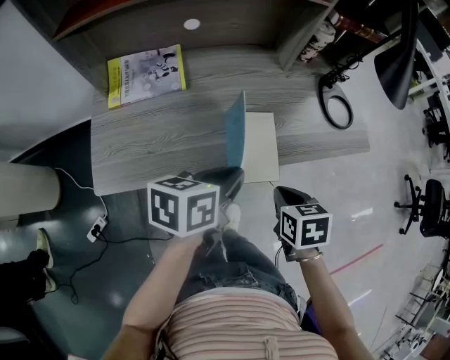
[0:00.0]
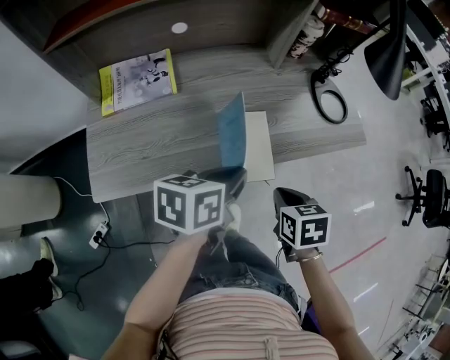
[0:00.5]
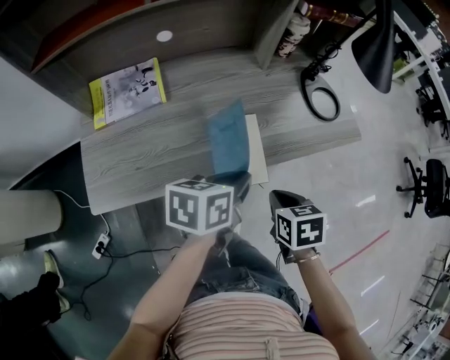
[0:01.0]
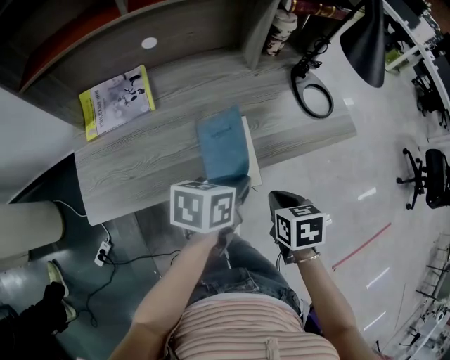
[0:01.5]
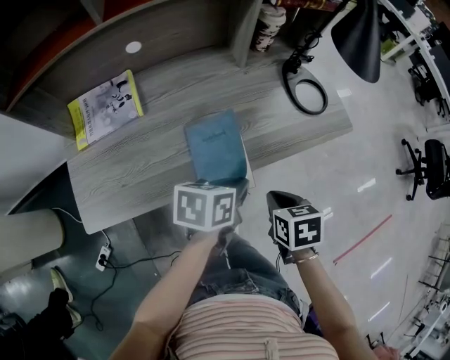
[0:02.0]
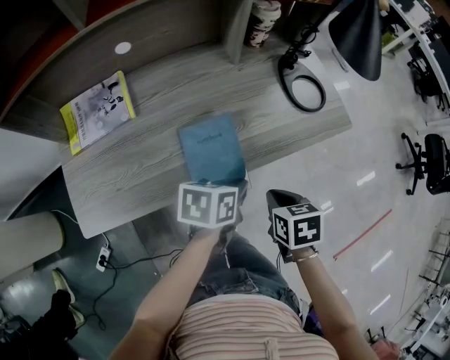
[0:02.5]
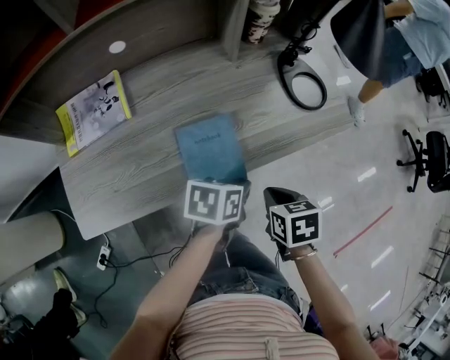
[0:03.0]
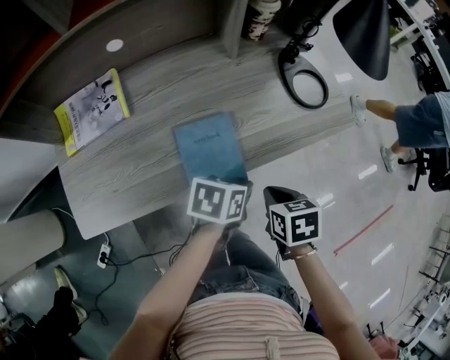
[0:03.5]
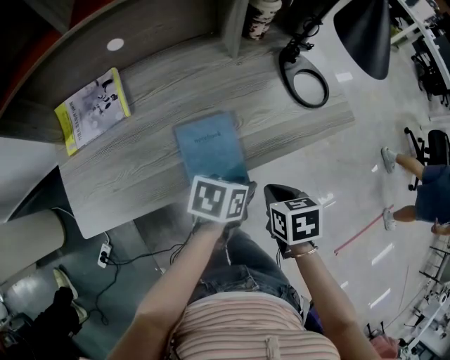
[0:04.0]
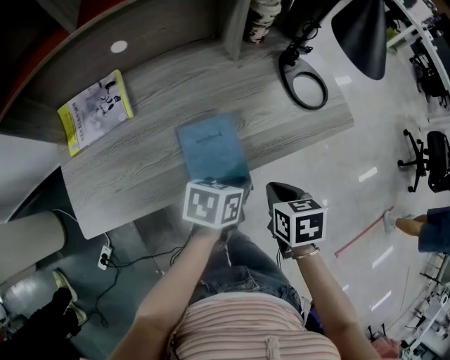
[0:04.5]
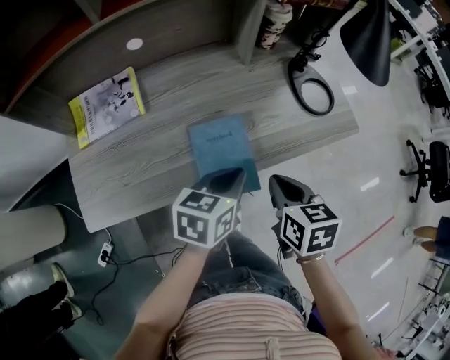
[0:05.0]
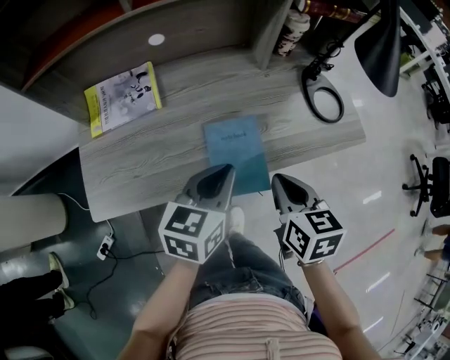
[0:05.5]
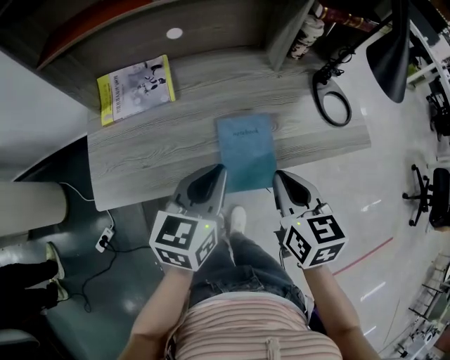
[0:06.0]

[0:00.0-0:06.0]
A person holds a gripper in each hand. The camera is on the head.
0:00.0 to 0:02.0: The right gripper shifts roughly 5 cm to the right. Meanwhile the left gripper moves to the right and downward, about 10 cm.
0:02.0 to 0:04.0: The left gripper travels downward by some 5 cm, and opens.
0:04.0 to 0:06.0: The left gripper goes about 20 cm to the left and upward, rotates about 50 degrees, and closes its fingers. The right gripper shifts approximately 15 cm upward and to the left, and angles its fingers upward, by approximately 30 degrees.

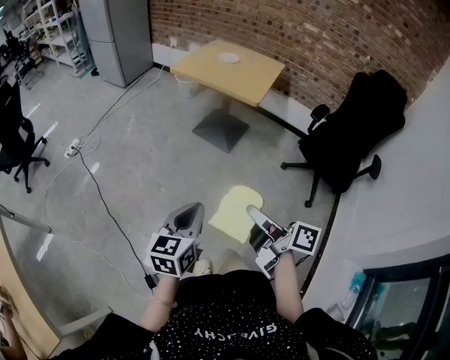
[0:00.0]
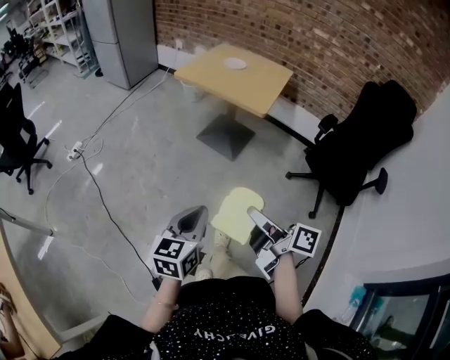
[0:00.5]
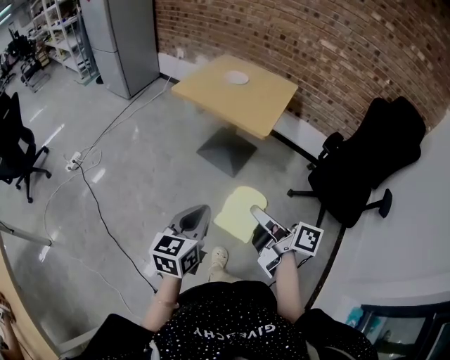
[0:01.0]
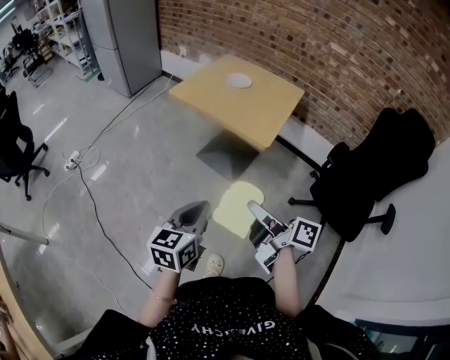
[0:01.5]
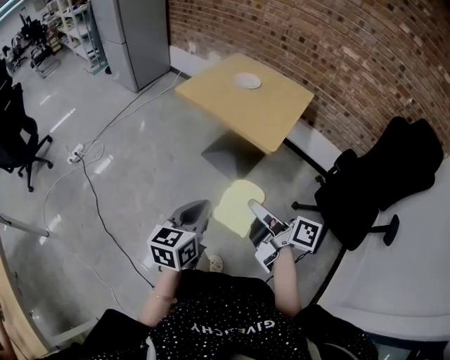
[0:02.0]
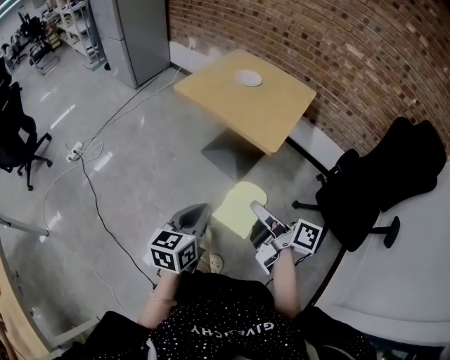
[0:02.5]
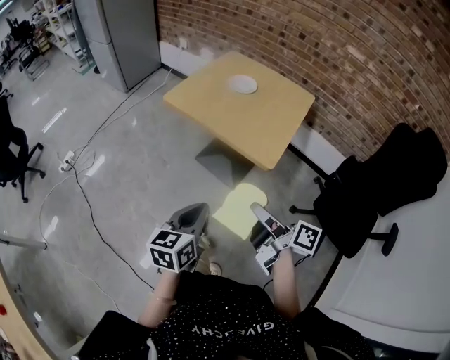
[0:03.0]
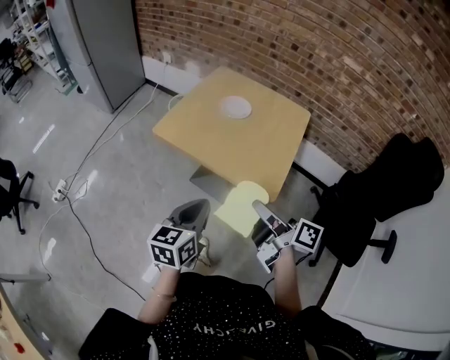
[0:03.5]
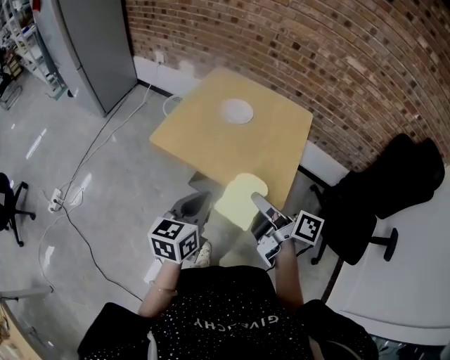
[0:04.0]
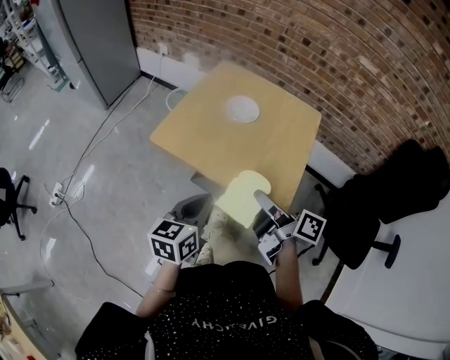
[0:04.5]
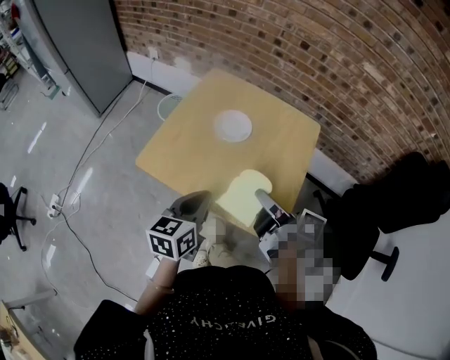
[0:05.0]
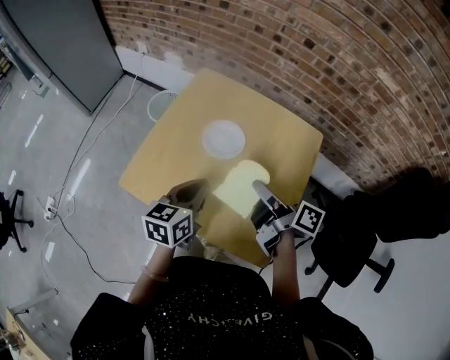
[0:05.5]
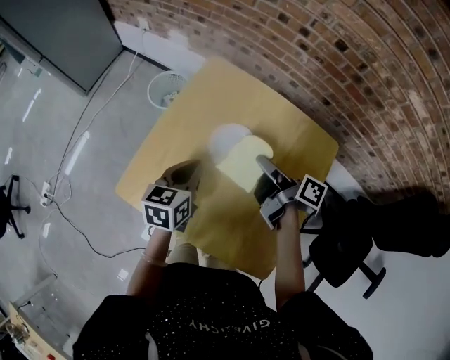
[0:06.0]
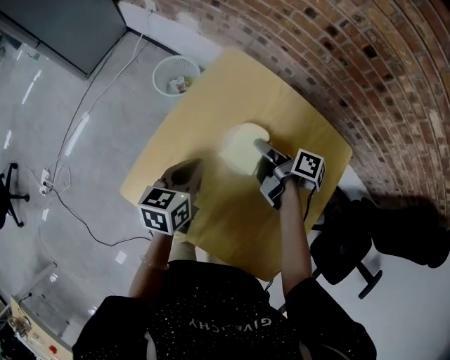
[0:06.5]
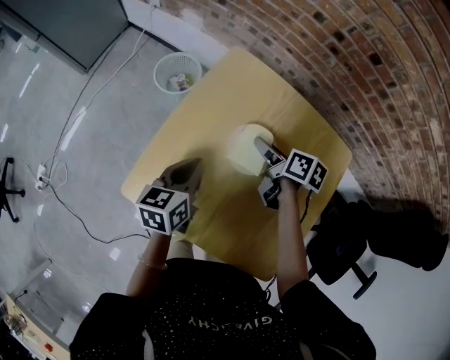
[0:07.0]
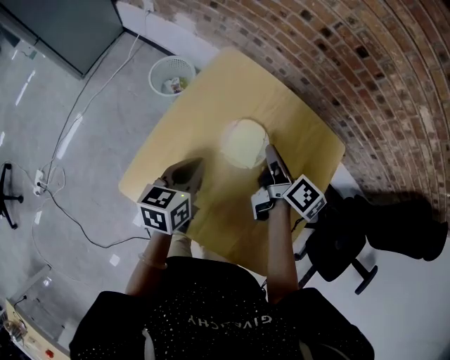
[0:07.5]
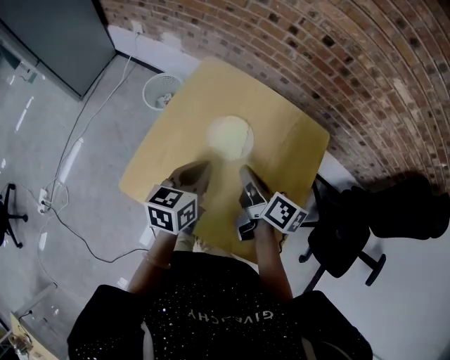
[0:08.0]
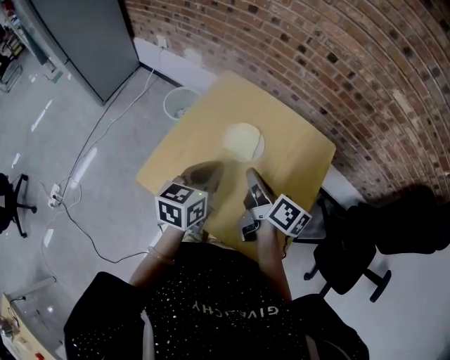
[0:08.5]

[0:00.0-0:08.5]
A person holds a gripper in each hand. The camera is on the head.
0:00.0 to 0:02.0: Both grippers move forward, approximately 30 cm.
0:02.0 to 0:04.0: The two grippers go approximately 35 cm forward.
0:04.0 to 0:06.5: The pair of grippers is taken forward, approximately 50 cm. The right gripper changes its angle by roughly 30 degrees.
0:06.5 to 0:08.5: The right gripper heads backward and upward, covering some 20 cm, changes its angle by some 30 degrees, and opens, then closes once more. Meanwhile the left gripper is displaced upward and backward by approximately 15 cm.

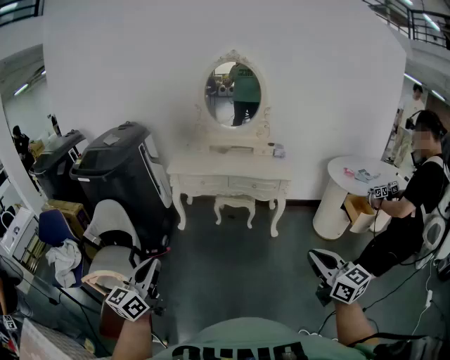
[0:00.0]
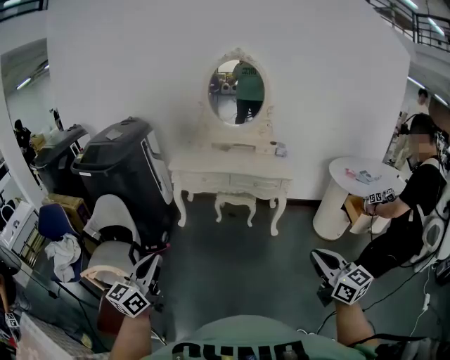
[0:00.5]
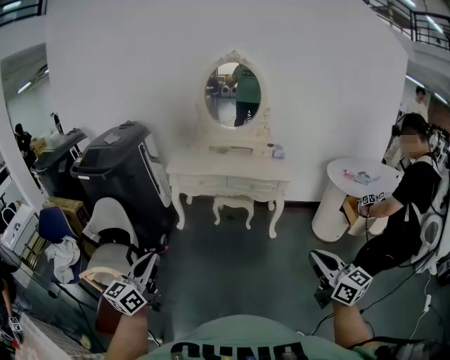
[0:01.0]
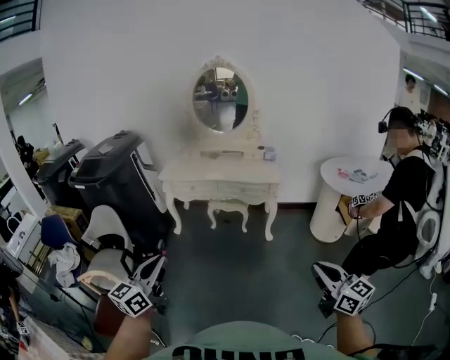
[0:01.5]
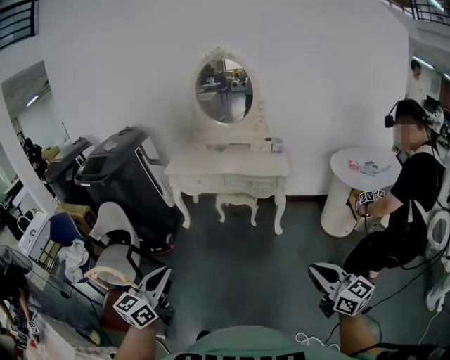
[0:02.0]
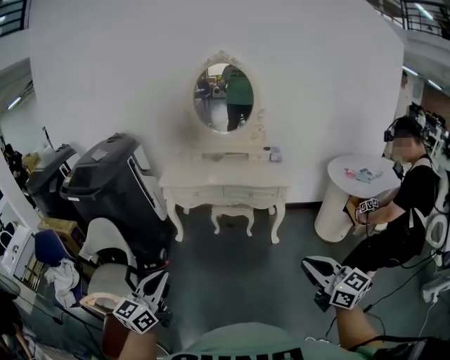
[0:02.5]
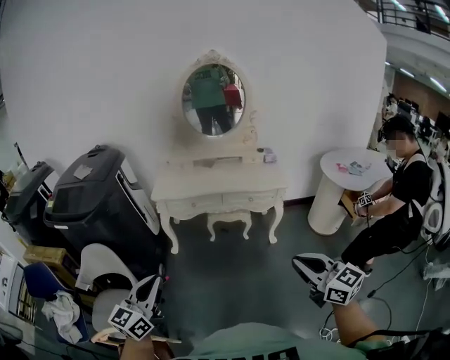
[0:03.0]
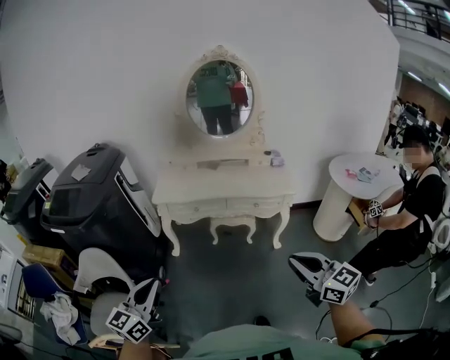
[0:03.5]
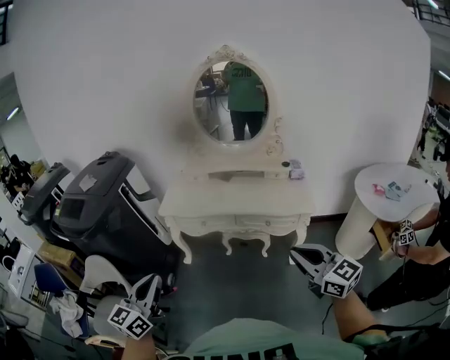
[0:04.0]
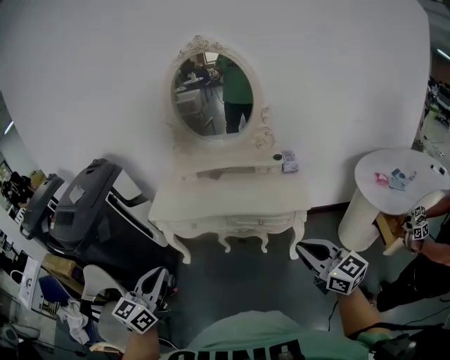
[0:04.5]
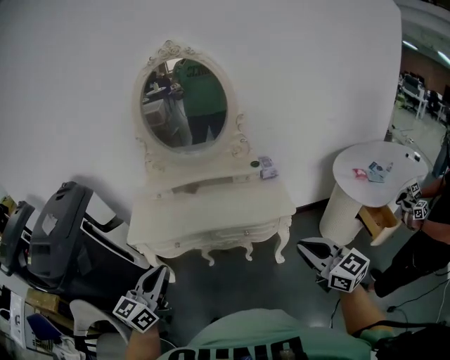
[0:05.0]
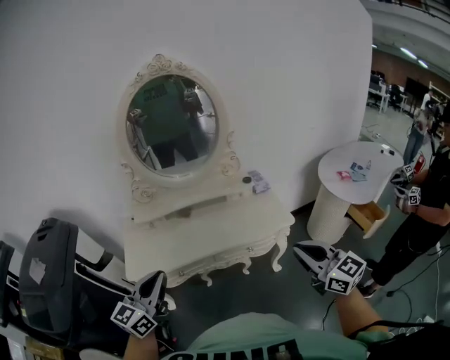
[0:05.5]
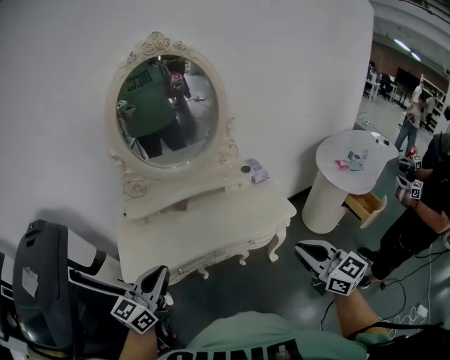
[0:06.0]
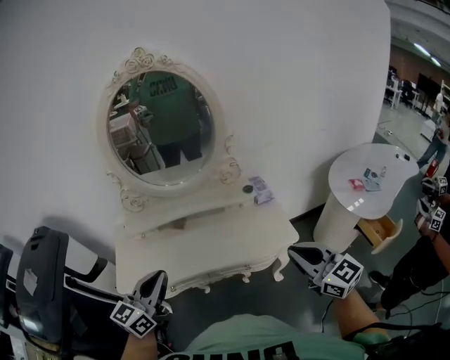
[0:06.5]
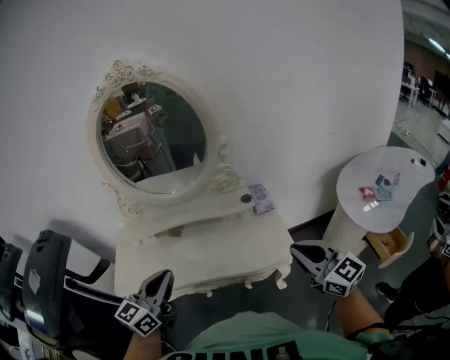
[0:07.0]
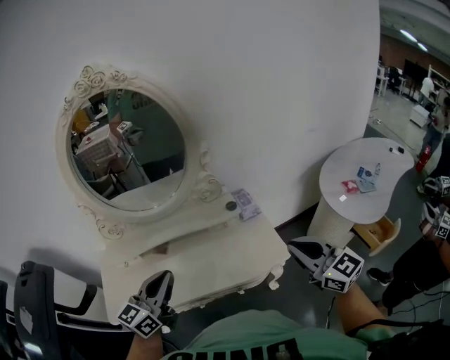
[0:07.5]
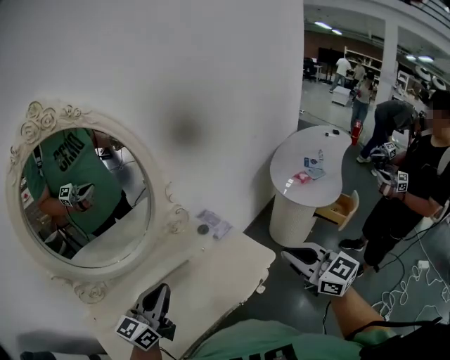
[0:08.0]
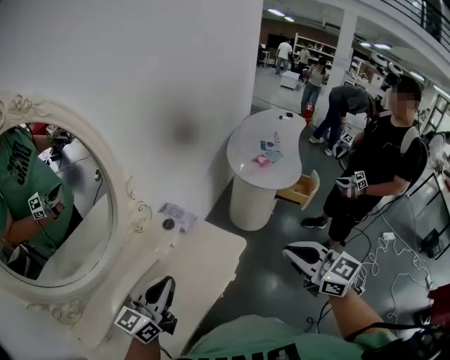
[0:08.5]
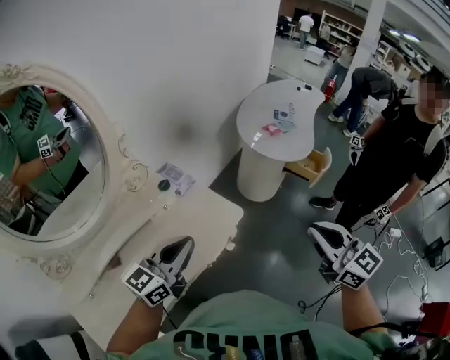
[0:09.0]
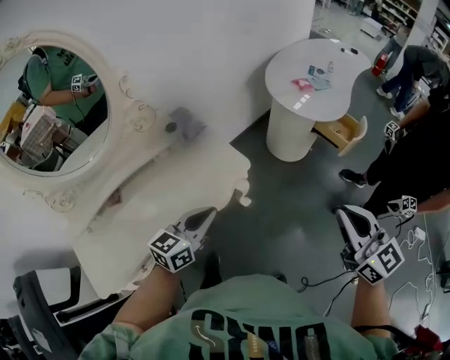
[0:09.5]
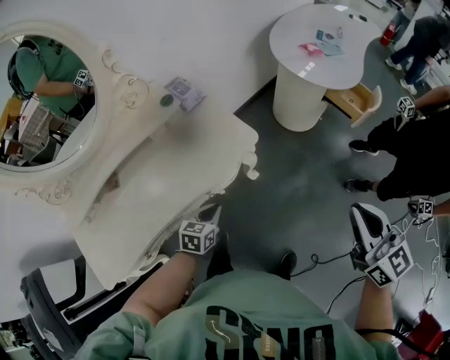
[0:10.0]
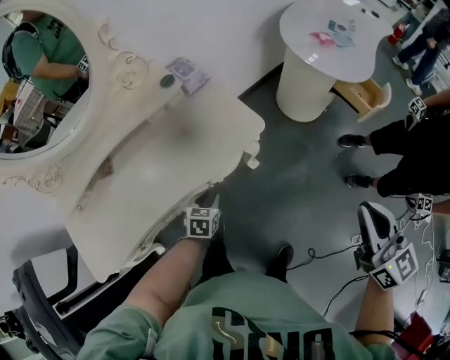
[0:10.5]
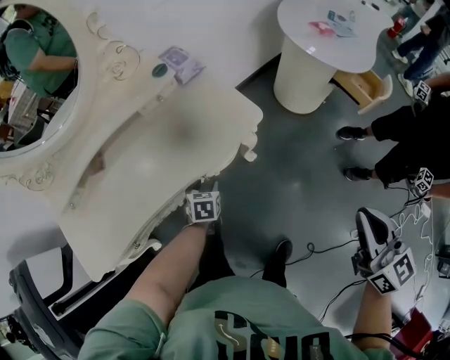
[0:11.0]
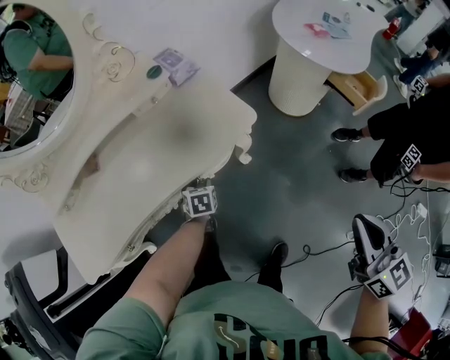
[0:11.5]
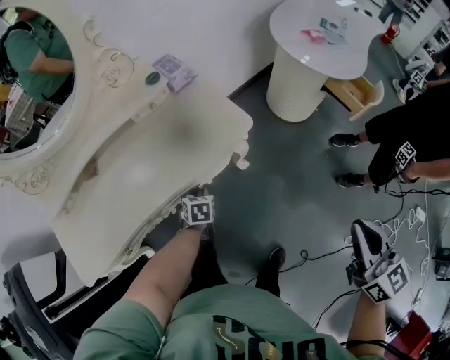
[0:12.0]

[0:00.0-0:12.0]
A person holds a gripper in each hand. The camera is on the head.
0:00.0 to 0:02.0: Both grippers travel together to the right, some 15 cm.
0:02.0 to 0:04.0: The two grippers travel together, forward, roughly 40 cm.
0:04.0 to 0:06.0: The left gripper ends up approximately 40 cm from where it was, and rotates approximately 30 degrees. Meanwhile the right gripper moves roughly 20 cm, and rotates roughly 30 degrees.
0:06.0 to 0:08.0: The right gripper ends up some 25 cm from where it was. The left gripper moves roughly 35 cm, and changes its angle by some 20 degrees.
0:08.0 to 0:10.0: The right gripper travels to the right and downward by some 30 cm, while the left gripper goes about 40 cm downward and to the right, and angles its fingers downward, by roughly 50 degrees.
0:10.0 to 0:12.0: The right gripper travels downward by roughly 5 cm, while the left gripper moves downward, about 15 cm, changes its angle by some 30 degrees, and opens and closes again.
